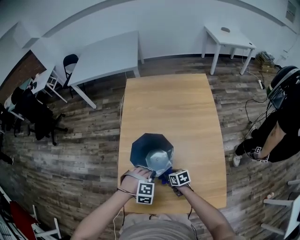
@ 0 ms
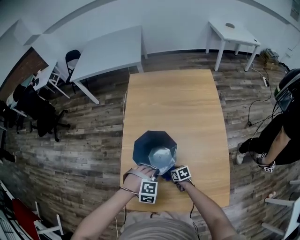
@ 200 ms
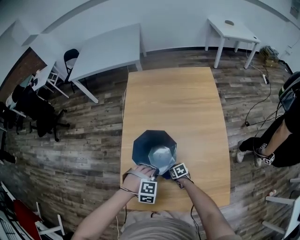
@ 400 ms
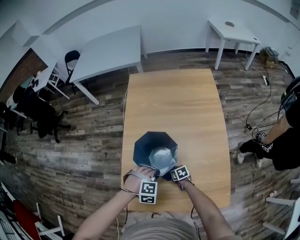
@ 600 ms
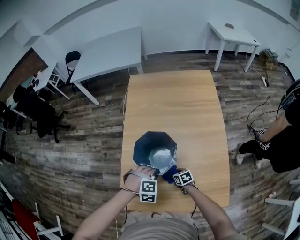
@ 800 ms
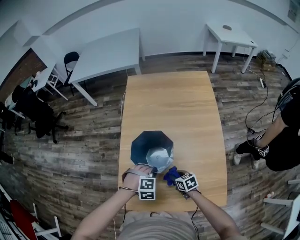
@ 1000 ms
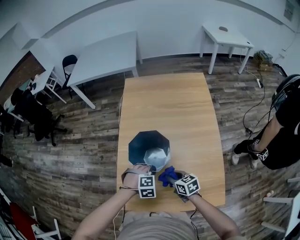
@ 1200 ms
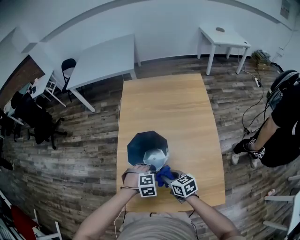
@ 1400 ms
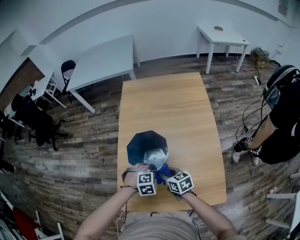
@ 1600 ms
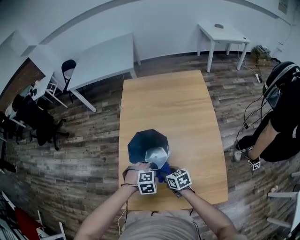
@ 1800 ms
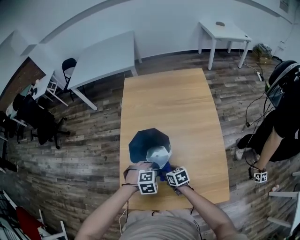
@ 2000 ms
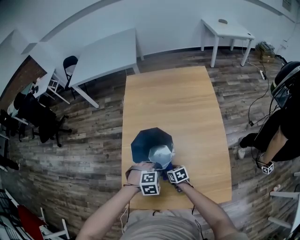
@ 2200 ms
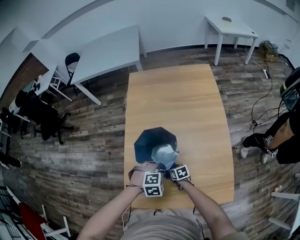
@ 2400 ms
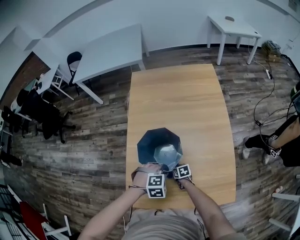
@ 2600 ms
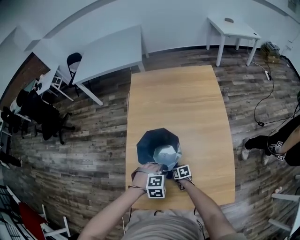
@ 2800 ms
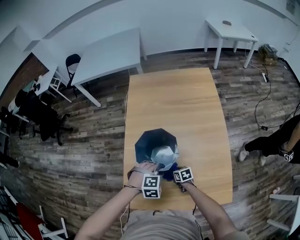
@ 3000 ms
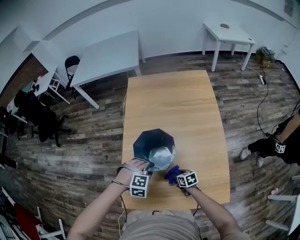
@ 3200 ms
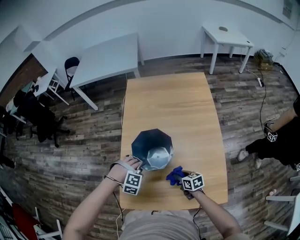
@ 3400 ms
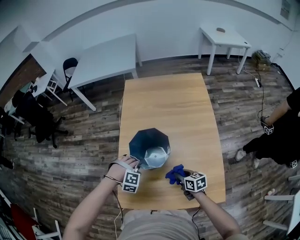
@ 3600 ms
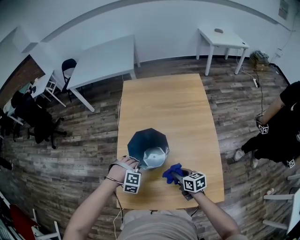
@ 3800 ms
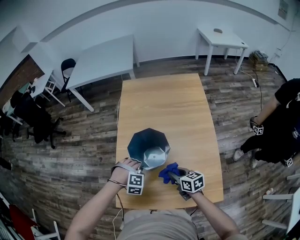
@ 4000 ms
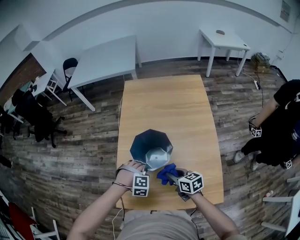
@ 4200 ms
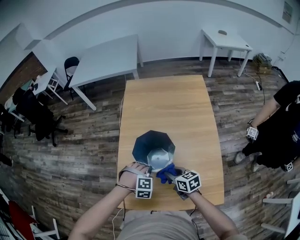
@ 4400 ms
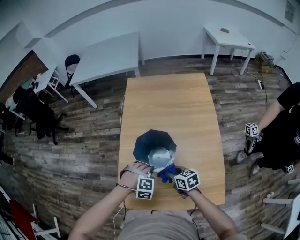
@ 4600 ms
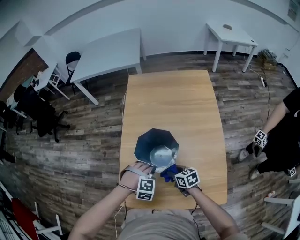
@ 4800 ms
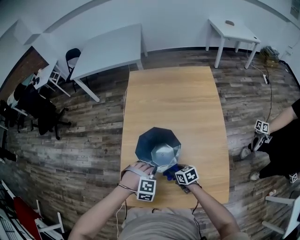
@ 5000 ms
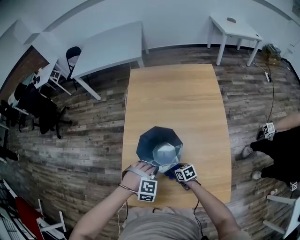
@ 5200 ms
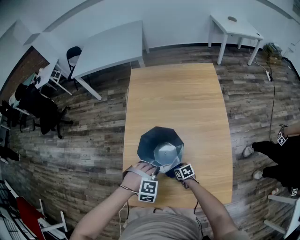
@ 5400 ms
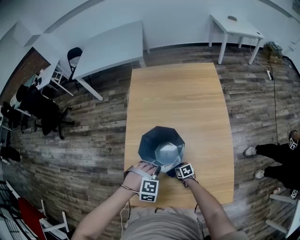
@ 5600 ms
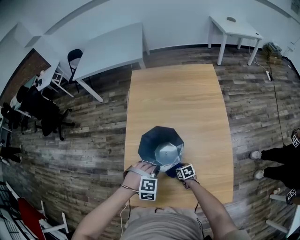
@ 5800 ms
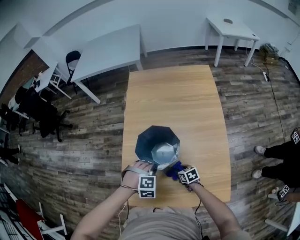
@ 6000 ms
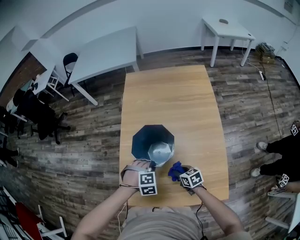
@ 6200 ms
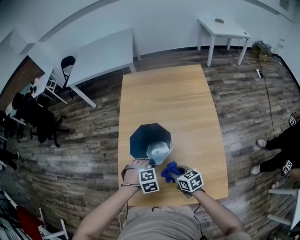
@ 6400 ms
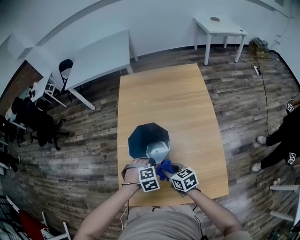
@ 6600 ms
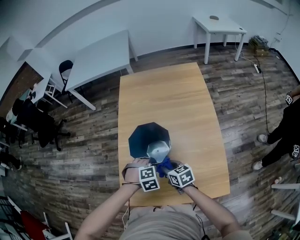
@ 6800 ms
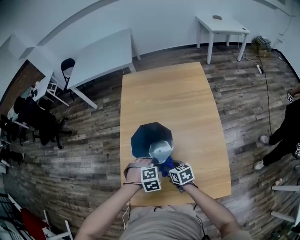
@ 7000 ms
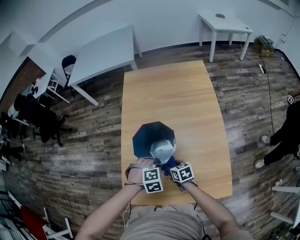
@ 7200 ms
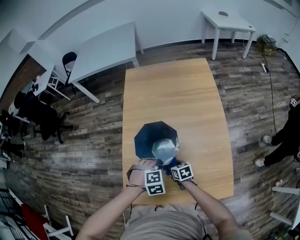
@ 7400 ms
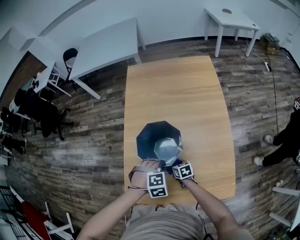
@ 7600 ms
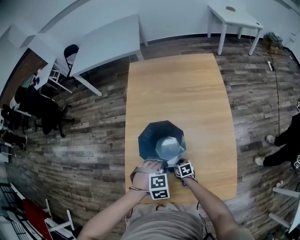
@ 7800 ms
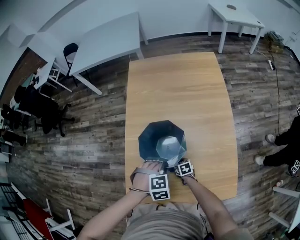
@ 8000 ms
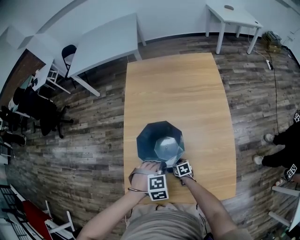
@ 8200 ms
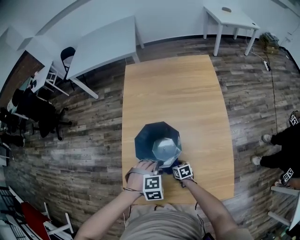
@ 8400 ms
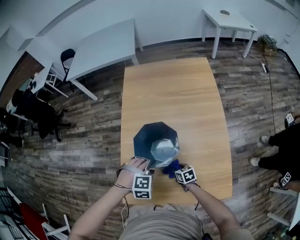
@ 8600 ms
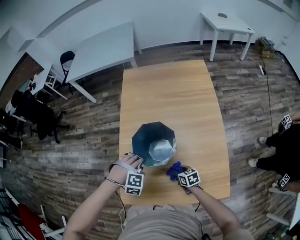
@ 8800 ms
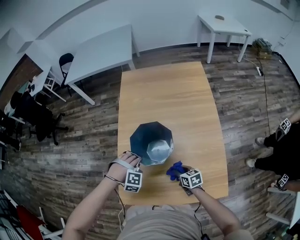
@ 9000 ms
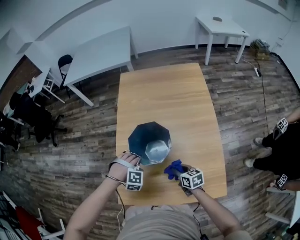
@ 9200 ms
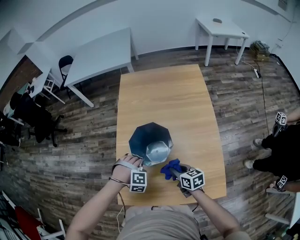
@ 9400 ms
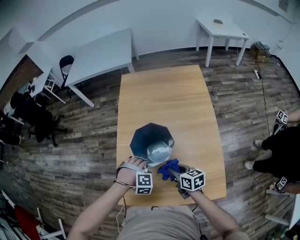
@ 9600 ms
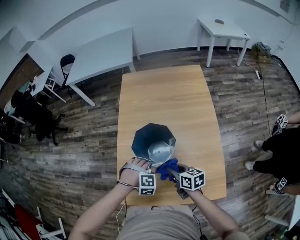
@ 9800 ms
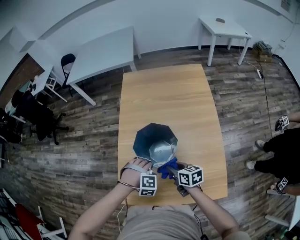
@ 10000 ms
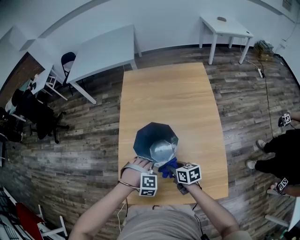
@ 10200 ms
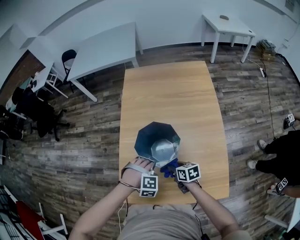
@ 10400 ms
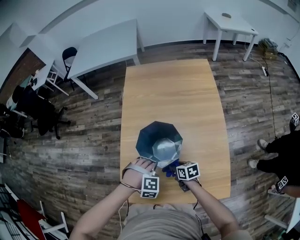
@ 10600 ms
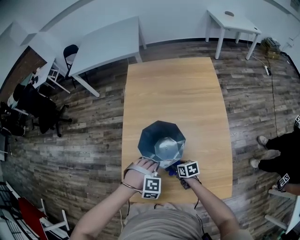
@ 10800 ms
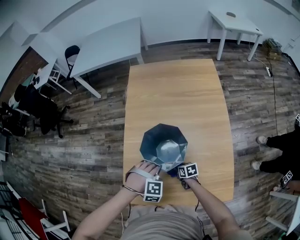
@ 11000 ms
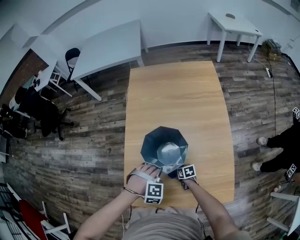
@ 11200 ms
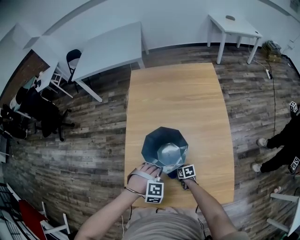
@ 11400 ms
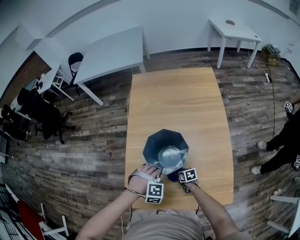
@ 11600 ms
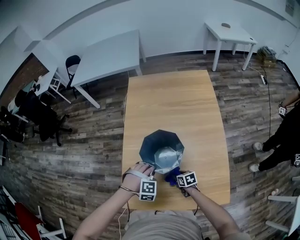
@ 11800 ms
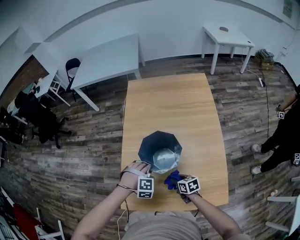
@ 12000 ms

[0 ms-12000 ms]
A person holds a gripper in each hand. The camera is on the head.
0 ms to 1600 ms: The right gripper heads upward, covering some 15 cm.
1600 ms to 3000 ms: The right gripper heads downward, covering approximately 20 cm.
3000 ms to 4400 ms: The right gripper is displaced upward by about 20 cm, and rotates about 20 degrees.
4400 ms to 6000 ms: The right gripper goes about 20 cm downward.
6000 ms to 7600 ms: The right gripper goes upward and returns, approximately 20 cm each way.
7600 ms to 9000 ms: The right gripper moves upward, approximately 10 cm.
9000 ms to 10400 ms: The right gripper goes upward and returns, roughly 15 cm each way.
10400 ms to 12000 ms: The right gripper travels downward and back again, about 20 cm each way.

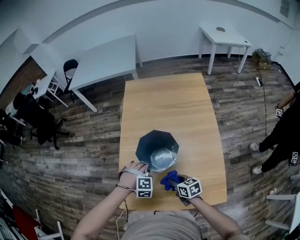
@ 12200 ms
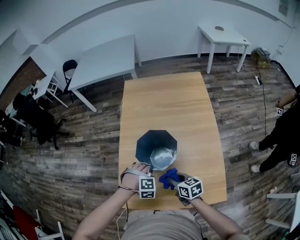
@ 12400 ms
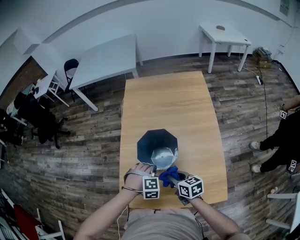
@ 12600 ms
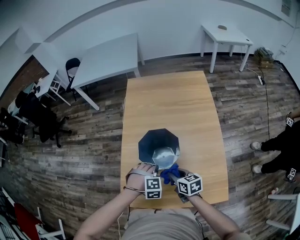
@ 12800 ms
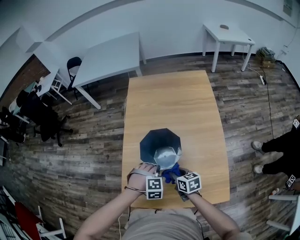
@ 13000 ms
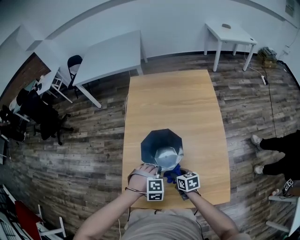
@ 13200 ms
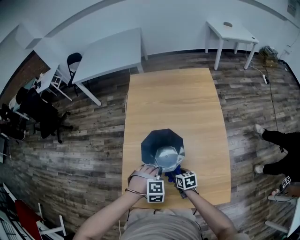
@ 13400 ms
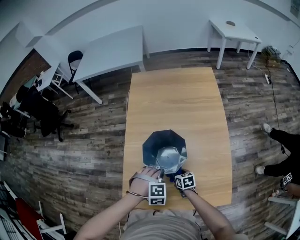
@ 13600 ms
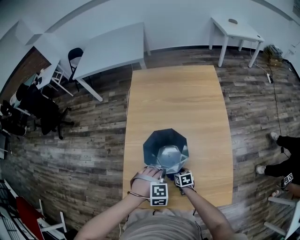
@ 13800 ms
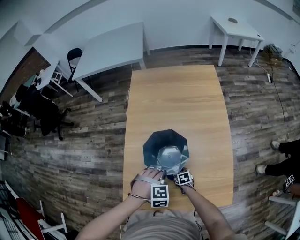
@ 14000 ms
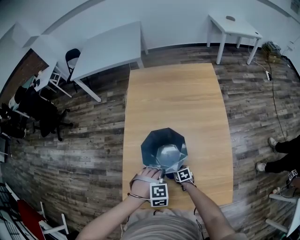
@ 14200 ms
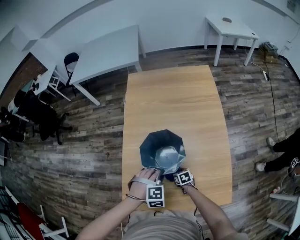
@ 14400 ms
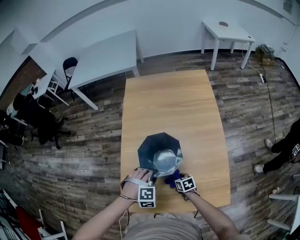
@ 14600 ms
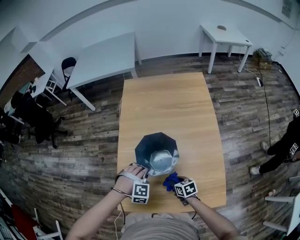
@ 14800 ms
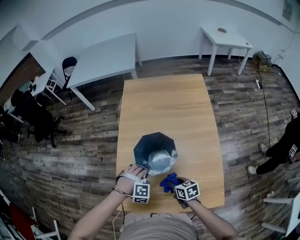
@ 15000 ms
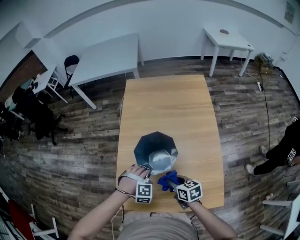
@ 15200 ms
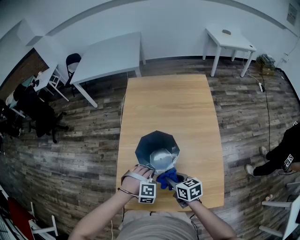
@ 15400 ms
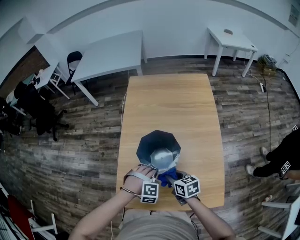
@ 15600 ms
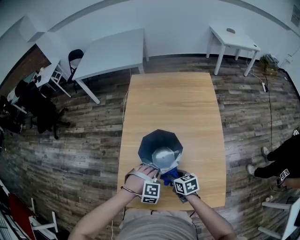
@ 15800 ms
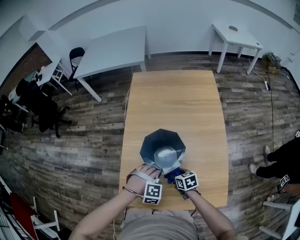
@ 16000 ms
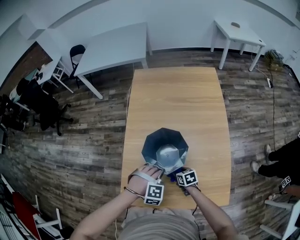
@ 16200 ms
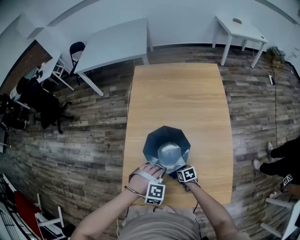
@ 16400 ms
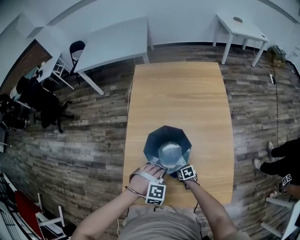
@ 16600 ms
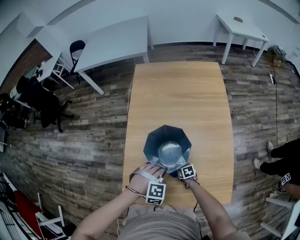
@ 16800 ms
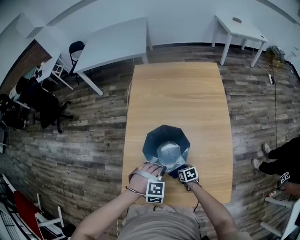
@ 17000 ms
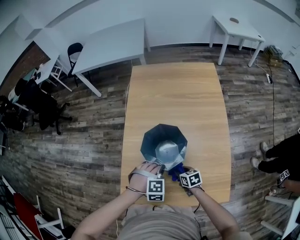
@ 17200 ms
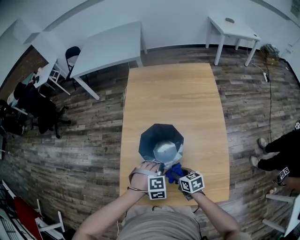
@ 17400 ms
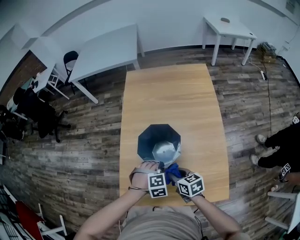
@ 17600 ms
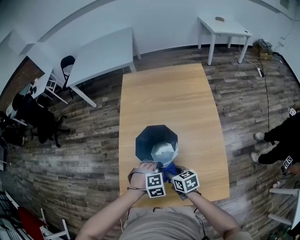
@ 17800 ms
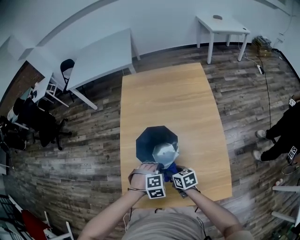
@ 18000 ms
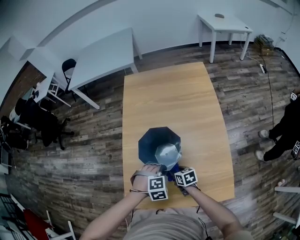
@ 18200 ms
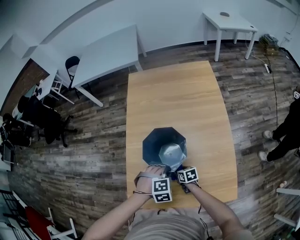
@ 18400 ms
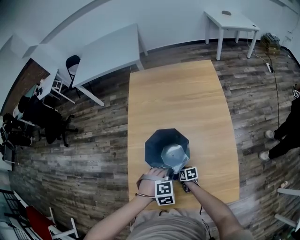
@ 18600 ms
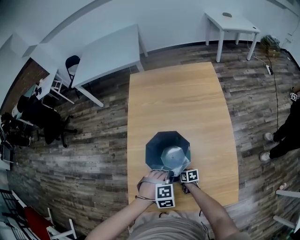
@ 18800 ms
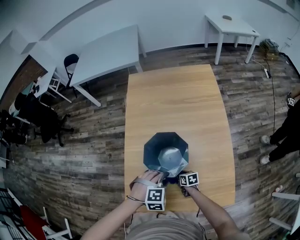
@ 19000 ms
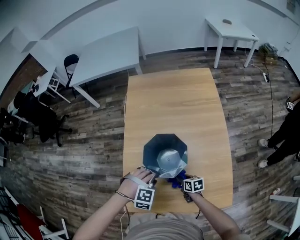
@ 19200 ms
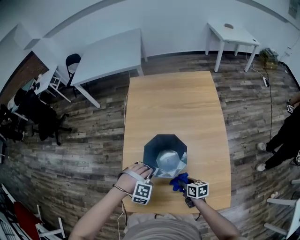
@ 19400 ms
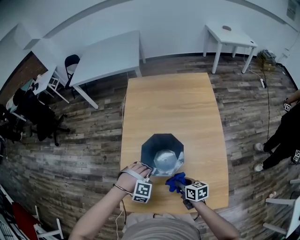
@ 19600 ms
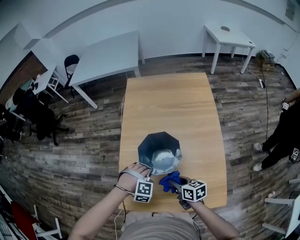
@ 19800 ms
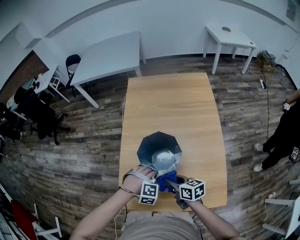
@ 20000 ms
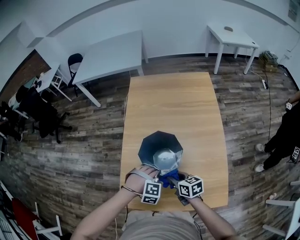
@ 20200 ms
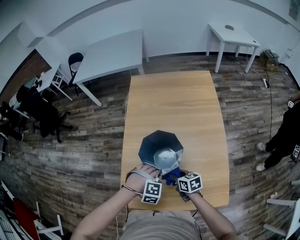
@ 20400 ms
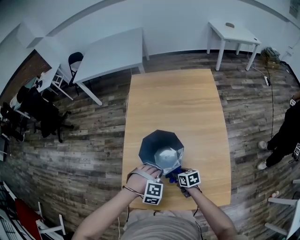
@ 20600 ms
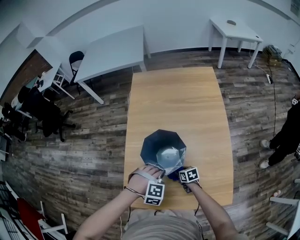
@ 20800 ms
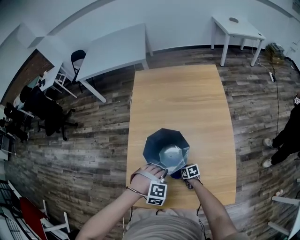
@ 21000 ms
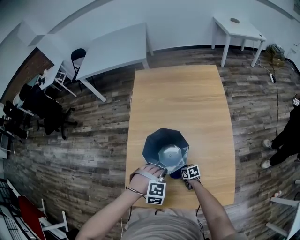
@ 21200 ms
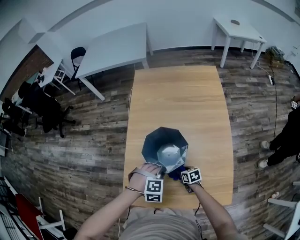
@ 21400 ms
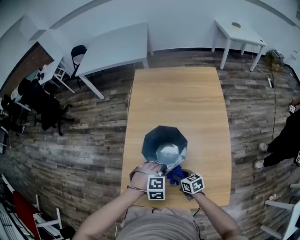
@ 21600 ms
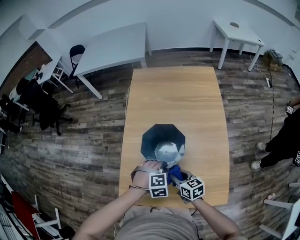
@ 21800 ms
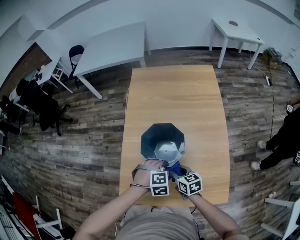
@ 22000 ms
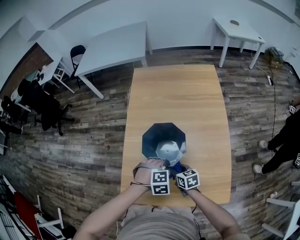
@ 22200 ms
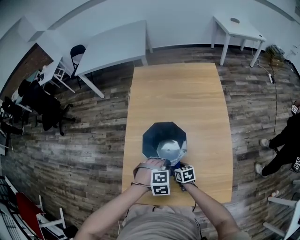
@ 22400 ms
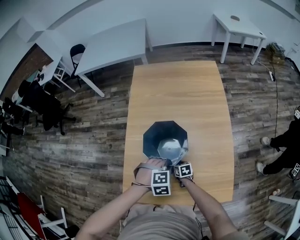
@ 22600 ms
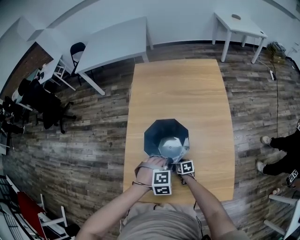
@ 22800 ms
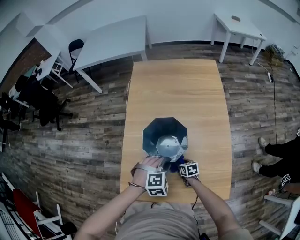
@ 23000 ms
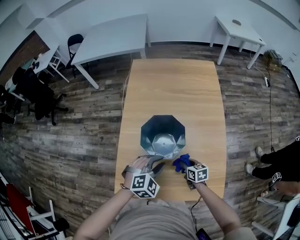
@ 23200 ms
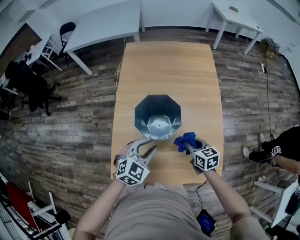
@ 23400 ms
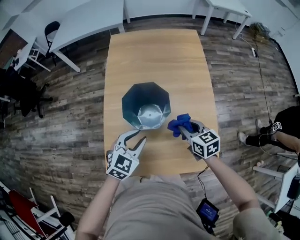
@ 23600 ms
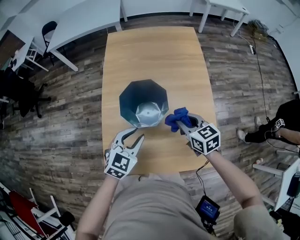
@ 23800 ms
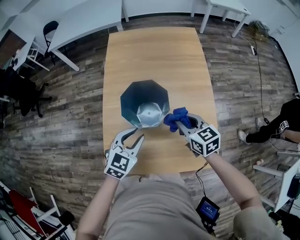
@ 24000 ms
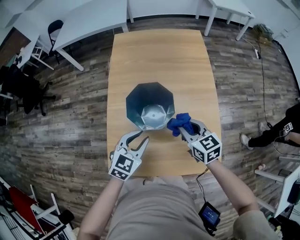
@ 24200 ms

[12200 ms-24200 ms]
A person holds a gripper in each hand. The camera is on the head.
12200 ms to 13800 ms: The right gripper shifts some 15 cm downward.
13800 ms to 15200 ms: The right gripper moves upward, approximately 20 cm.
15200 ms to 16600 ms: The right gripper moves downward, about 25 cm, and swivels about 20 degrees.
16600 ms to 18200 ms: The right gripper goes about 10 cm upward.
18200 ms to 19800 ms: The right gripper shifts approximately 10 cm upward.
19800 ms to 21200 ms: The right gripper is displaced downward by about 25 cm, and changes its angle by roughly 20 degrees.
21200 ms to 22600 ms: The right gripper moves roughly 20 cm upward and comes back.
22600 ms to 24200 ms: The right gripper travels upward by approximately 30 cm, and rotates some 30 degrees.
